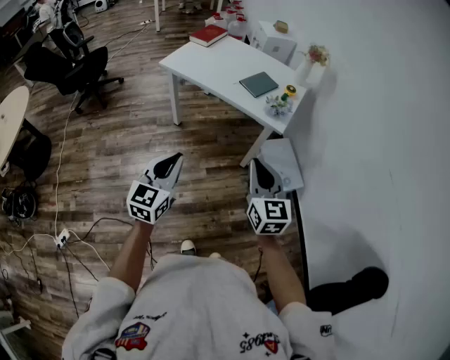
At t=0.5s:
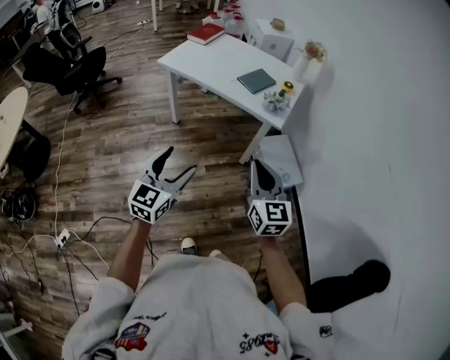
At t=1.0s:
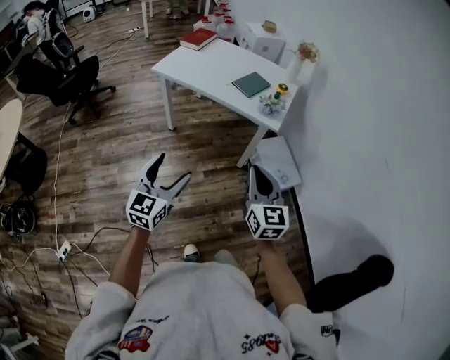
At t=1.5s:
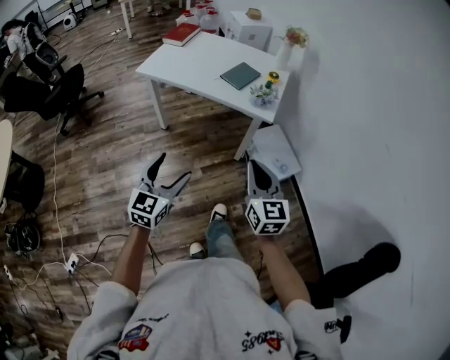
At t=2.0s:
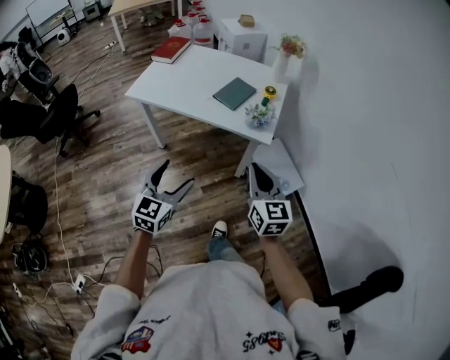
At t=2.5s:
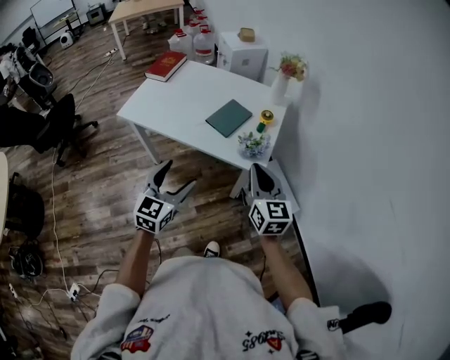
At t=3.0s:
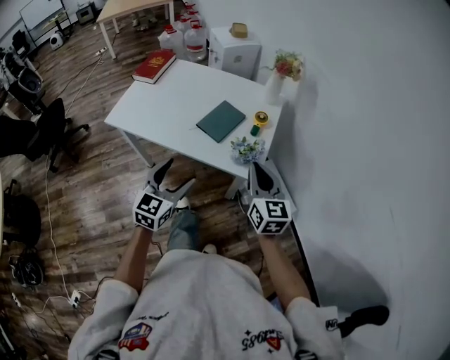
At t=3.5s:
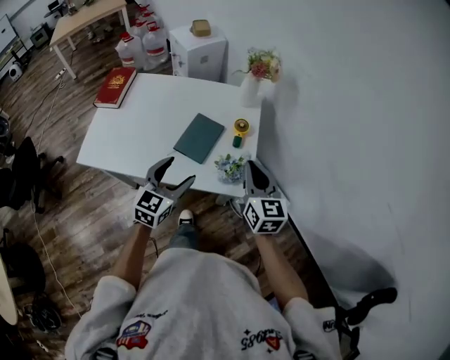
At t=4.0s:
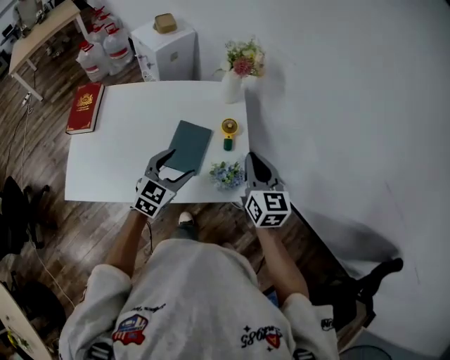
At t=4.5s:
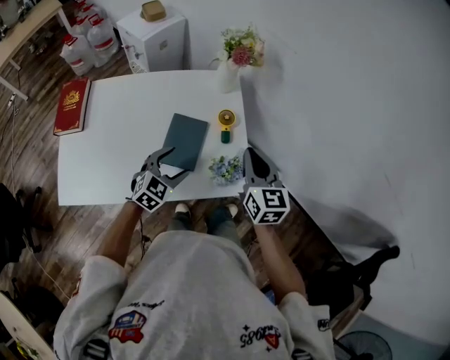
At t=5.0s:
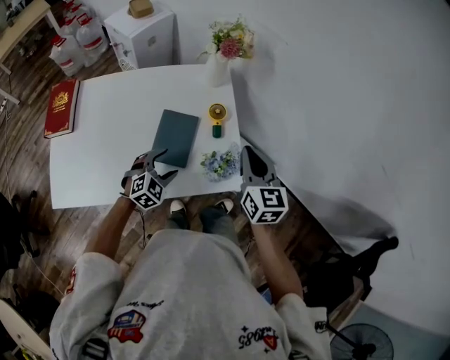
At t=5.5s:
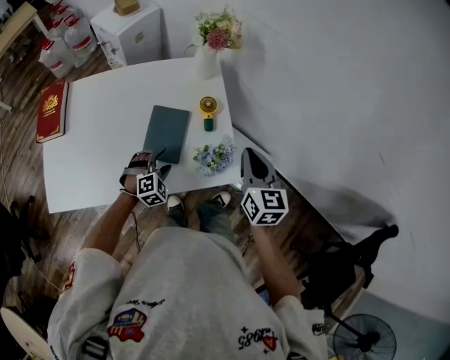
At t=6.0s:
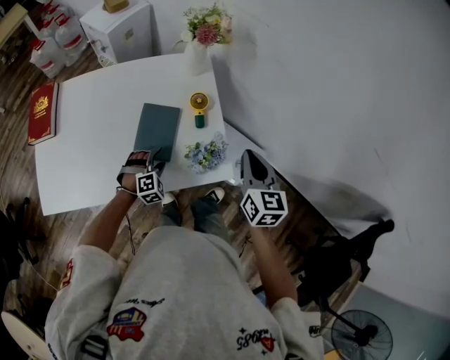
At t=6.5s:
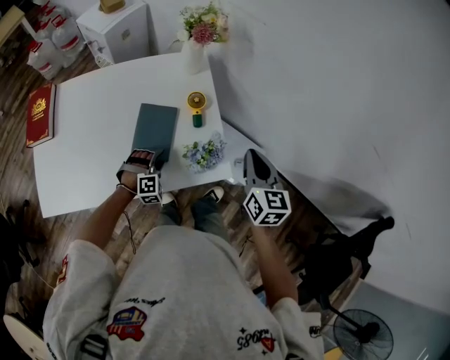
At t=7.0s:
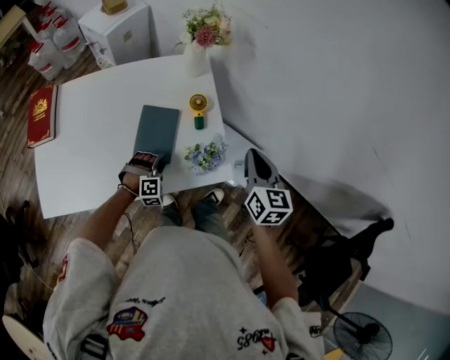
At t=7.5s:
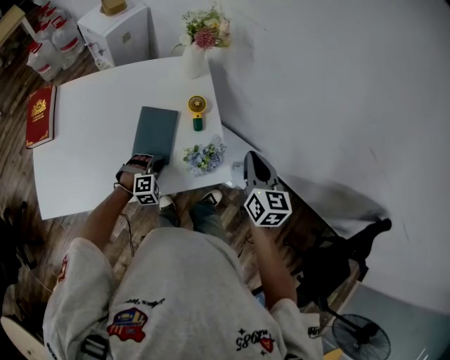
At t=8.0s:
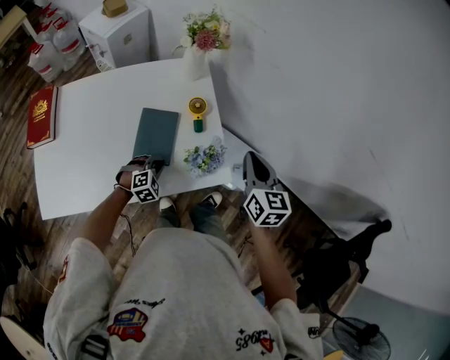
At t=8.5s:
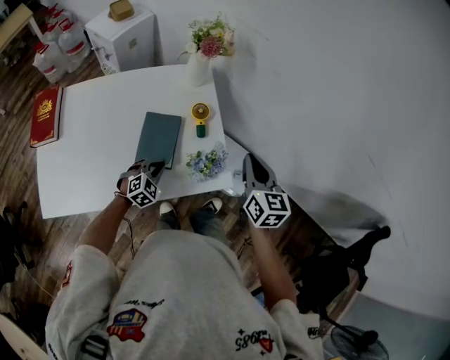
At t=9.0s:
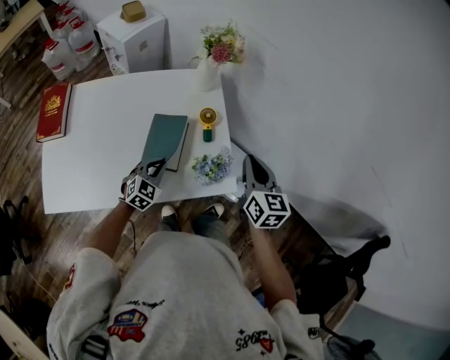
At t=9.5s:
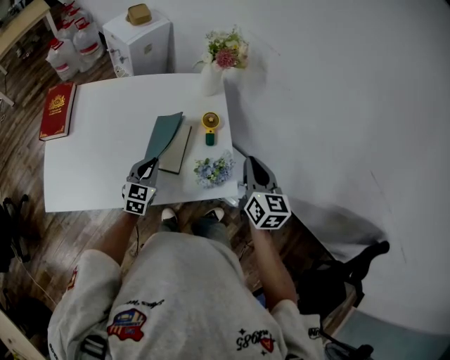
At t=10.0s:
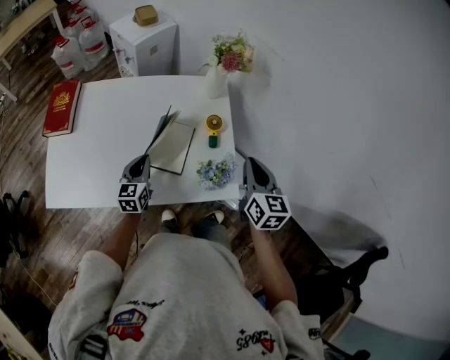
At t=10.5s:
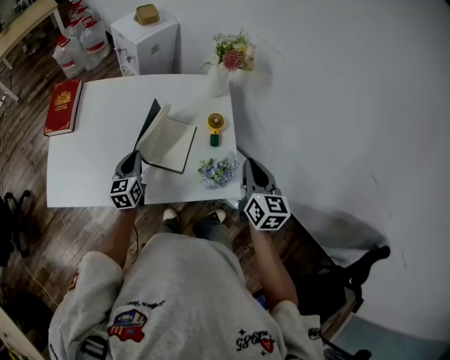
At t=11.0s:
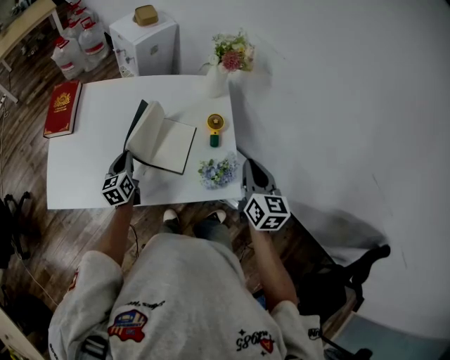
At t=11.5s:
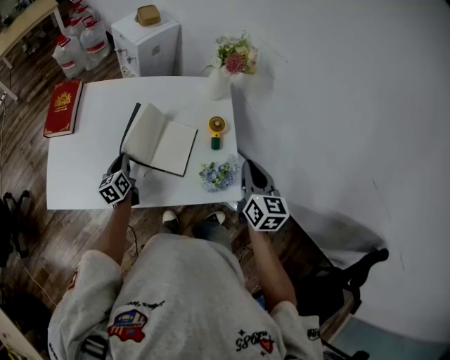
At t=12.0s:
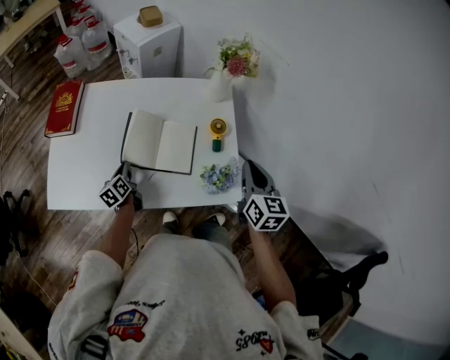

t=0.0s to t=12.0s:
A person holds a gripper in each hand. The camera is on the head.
t=0.0s to t=2.0s: The grippers both shift forward by roughly 15 cm. The left gripper opens.
t=2.0s to t=4.0s: Both grippers are carried roughly 50 cm. The left gripper swivels some 30 degrees. Meanwhile the right gripper changes its angle by some 30 degrees.
t=4.0s to t=6.0s: The left gripper shifts about 25 cm downward, and rotates around the line of its fingers by some 40 degrees, clockwise from behind, while the right gripper shifts roughly 10 cm to the right and downward.
t=6.0s to t=8.0s: The left gripper closes up.
t=8.0s to t=10.0s: The left gripper heads to the left and upward, covering roughly 20 cm, and twists roughly 60 degrees counterclockwise, seen from behind. The right gripper travels to the left by about 5 cm.
t=10.0s to t=12.0s: The left gripper goes roughly 15 cm to the left and downward, and turns by roughly 40 degrees.

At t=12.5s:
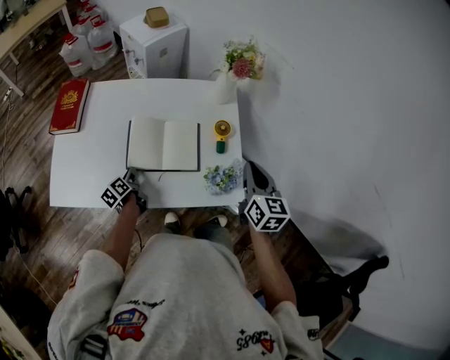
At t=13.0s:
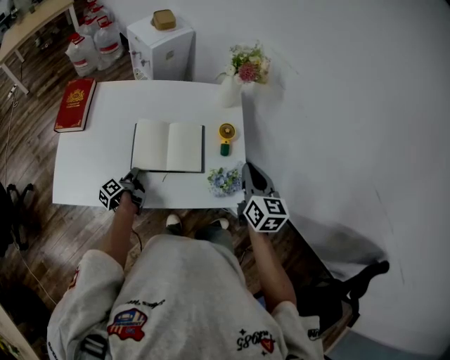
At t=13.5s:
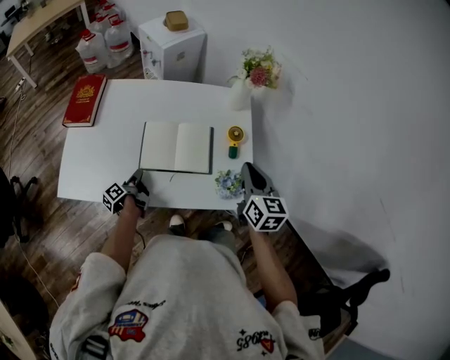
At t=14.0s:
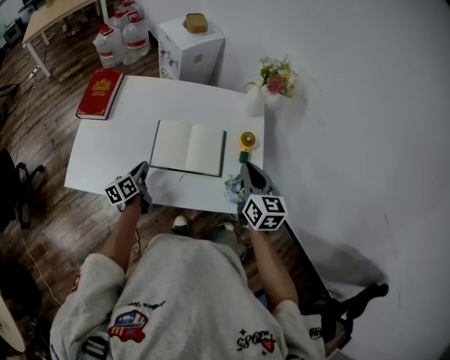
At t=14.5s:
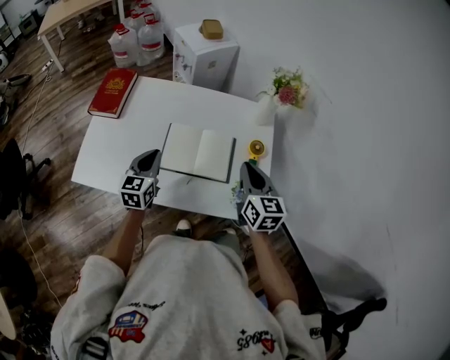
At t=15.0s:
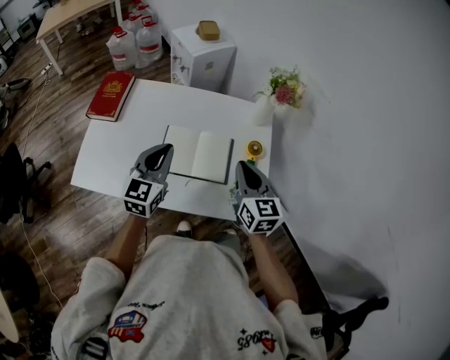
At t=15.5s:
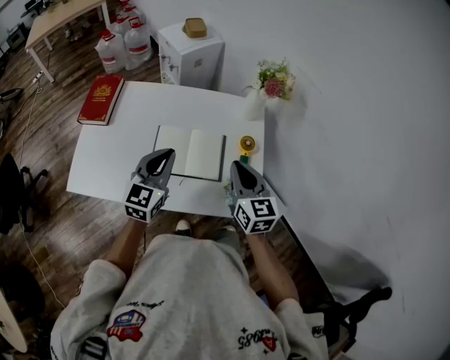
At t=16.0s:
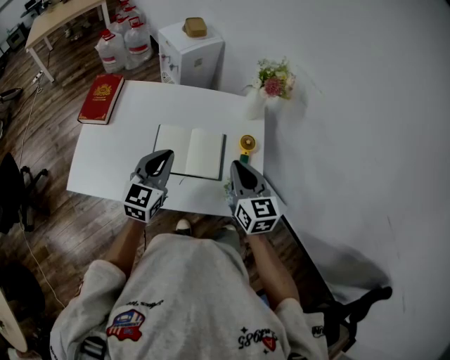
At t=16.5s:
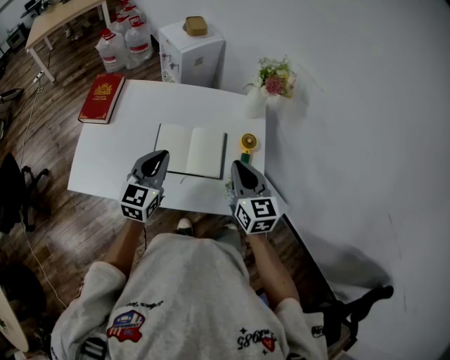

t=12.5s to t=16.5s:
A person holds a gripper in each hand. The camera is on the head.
t=12.5s to t=14.5s: The left gripper goes roughly 20 cm upward, and rotates around the line of its fingers by about 50 degrees, clockwise from behind. Meanwhile the right gripper travels to the left by approximately 15 cm.
t=14.5s to t=16.5s: The left gripper moves to the right and upward, about 10 cm.

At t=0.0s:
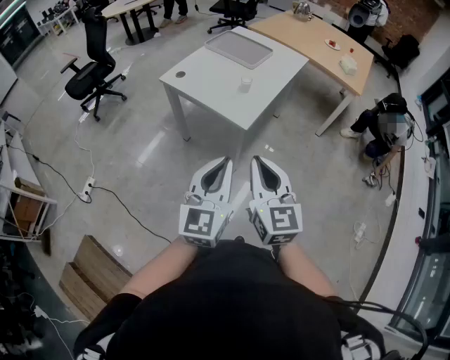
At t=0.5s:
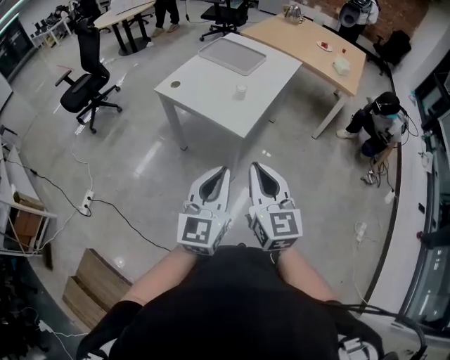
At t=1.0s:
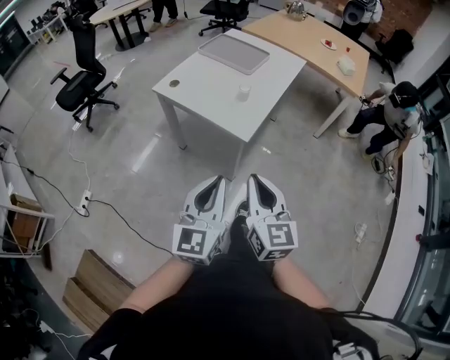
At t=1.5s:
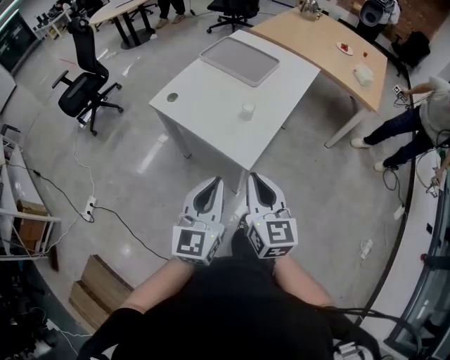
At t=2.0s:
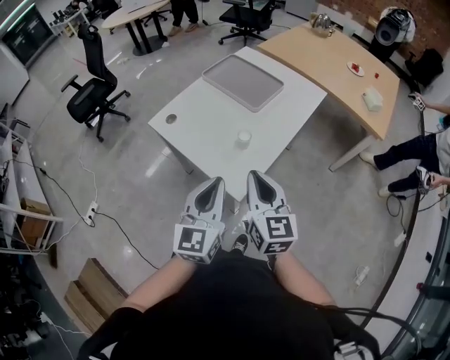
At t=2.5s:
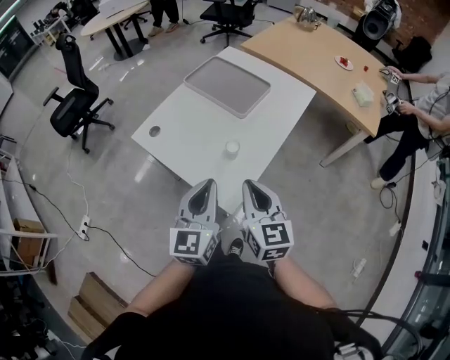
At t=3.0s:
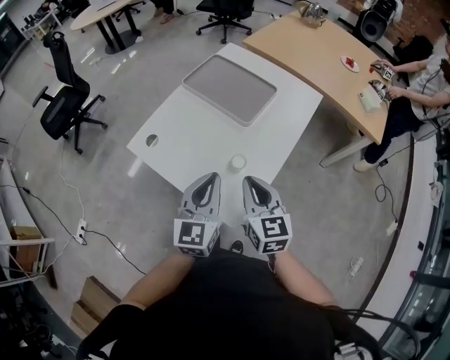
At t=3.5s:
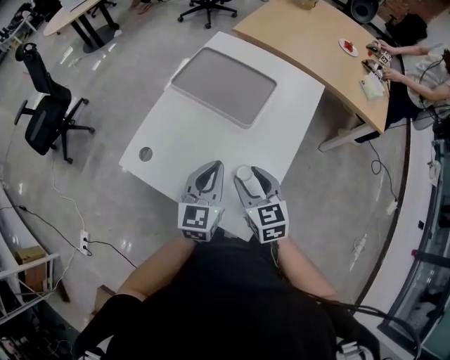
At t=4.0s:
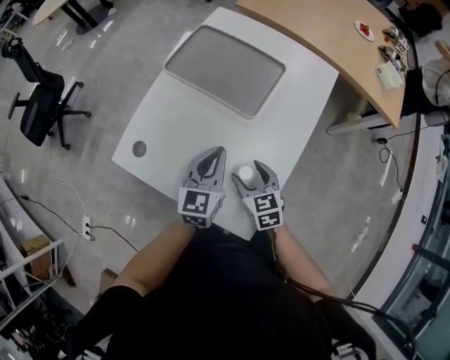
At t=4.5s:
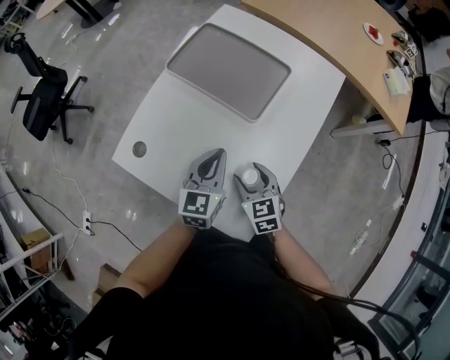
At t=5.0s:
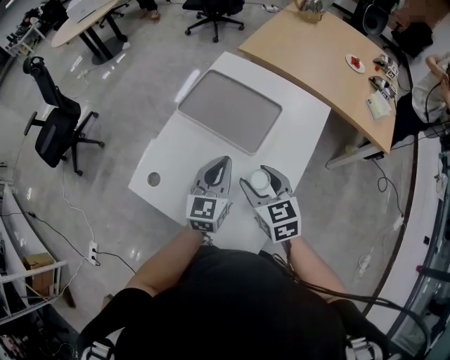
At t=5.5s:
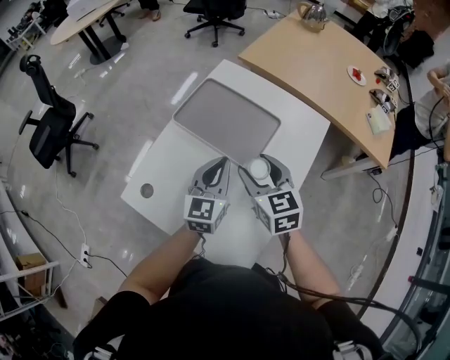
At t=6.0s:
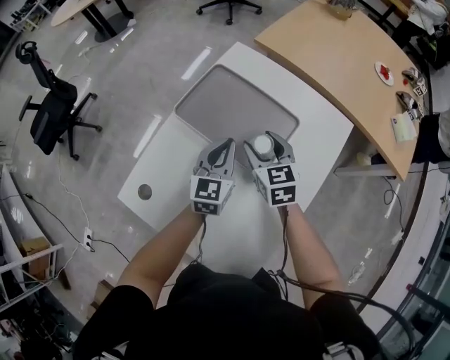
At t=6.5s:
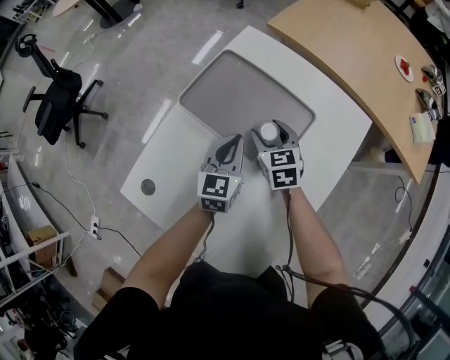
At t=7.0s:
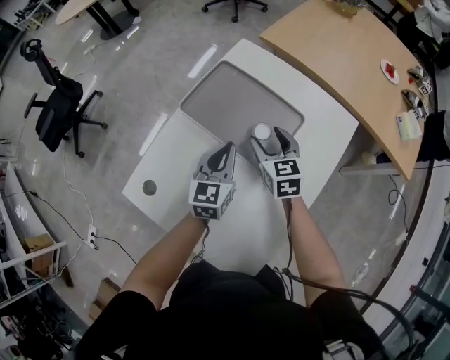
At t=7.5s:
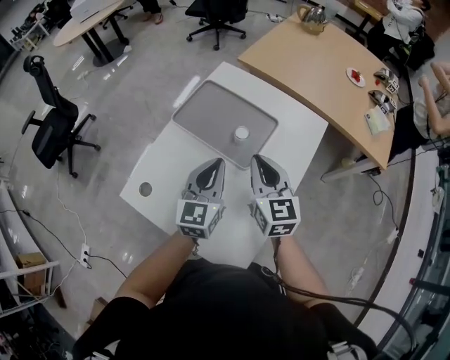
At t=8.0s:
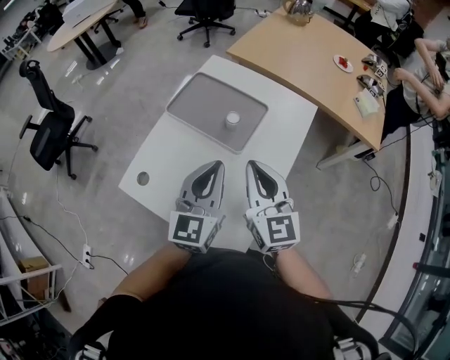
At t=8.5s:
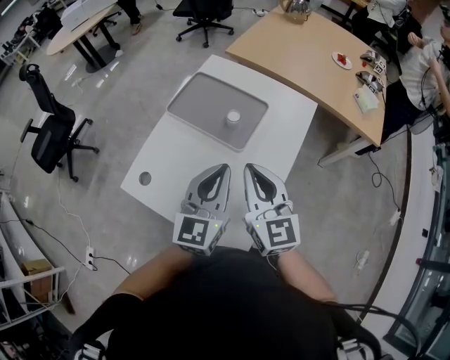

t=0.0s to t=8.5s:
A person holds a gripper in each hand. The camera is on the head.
t=0.0s to t=2.0s: The two grippers go roughly 35 cm forward.
t=2.0s to t=4.0s: The grippers both shift forward and downward by approximately 40 cm. The right gripper tilts its fingers about 30 degrees downward, and opens up. The left gripper turns by some 20 degrees.
t=4.0s to t=6.5s: Both grippers move forward, roughly 25 cm.
t=6.5s to t=8.5s: Both grippers travel together backward and upward, approximately 35 cm. The right gripper turns by some 30 degrees, and closes its fingers.

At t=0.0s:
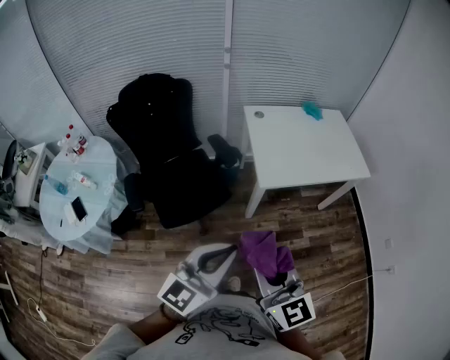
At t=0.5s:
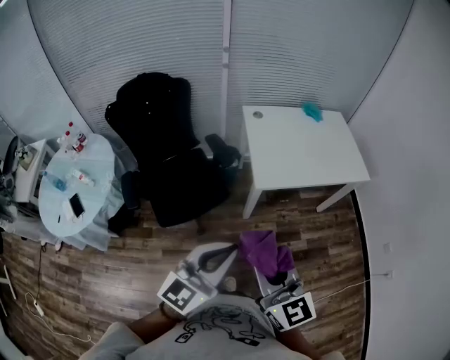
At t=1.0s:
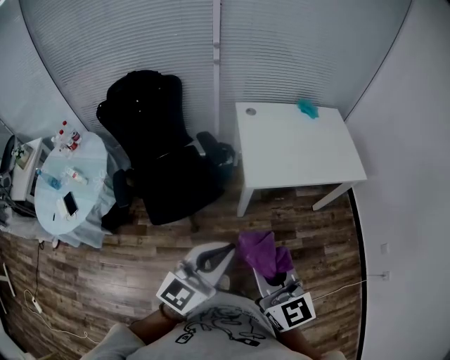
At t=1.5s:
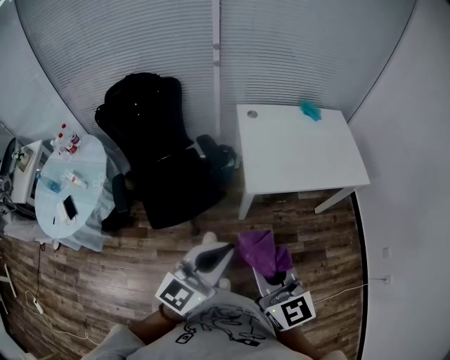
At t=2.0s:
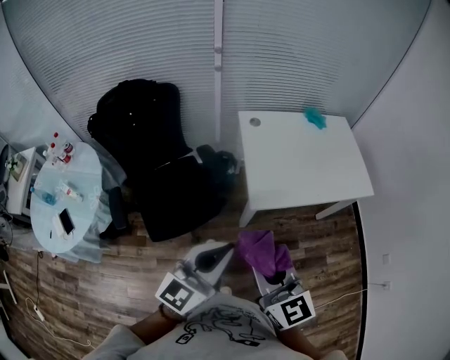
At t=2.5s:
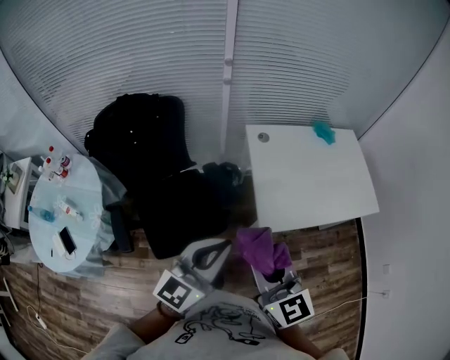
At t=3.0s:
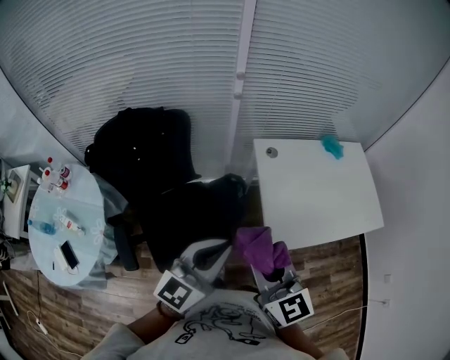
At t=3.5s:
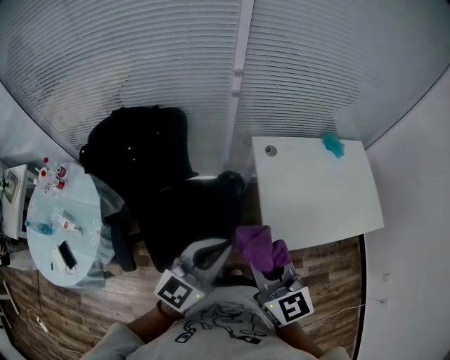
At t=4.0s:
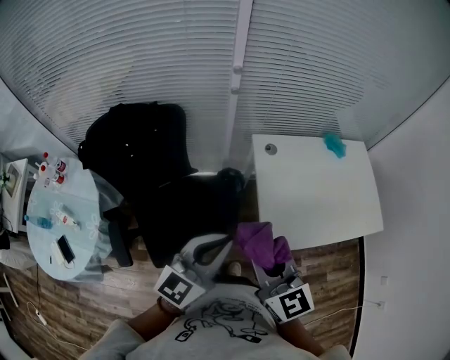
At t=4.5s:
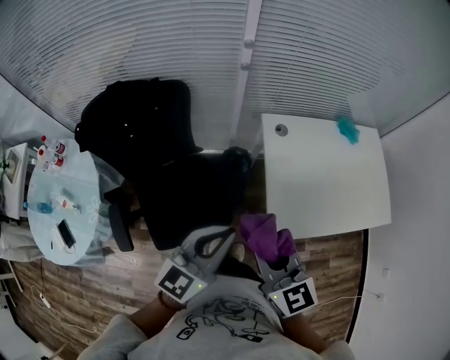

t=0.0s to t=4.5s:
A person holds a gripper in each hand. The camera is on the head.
t=0.0s to t=2.0s: Both grippers travel together forward, about 15 cm.
t=2.0s to t=4.5s: Both grippers travel together forward, some 30 cm.
